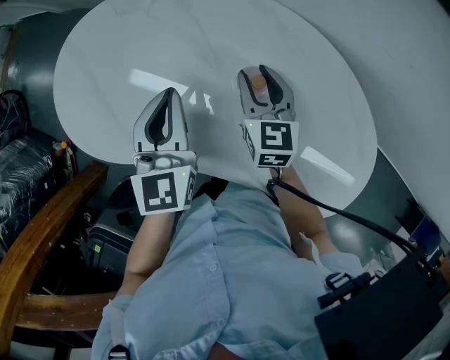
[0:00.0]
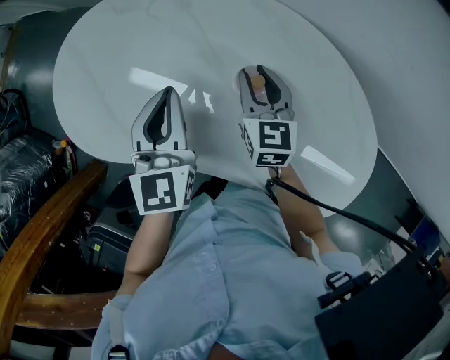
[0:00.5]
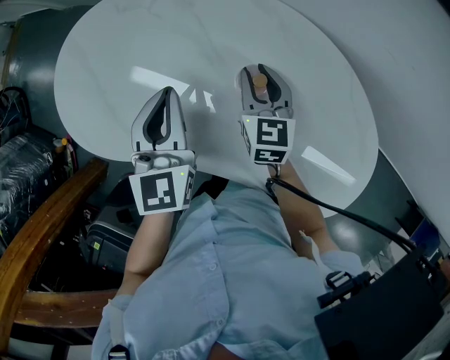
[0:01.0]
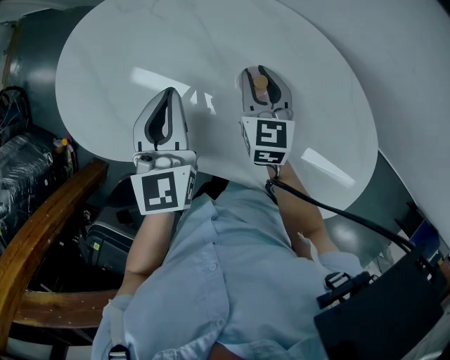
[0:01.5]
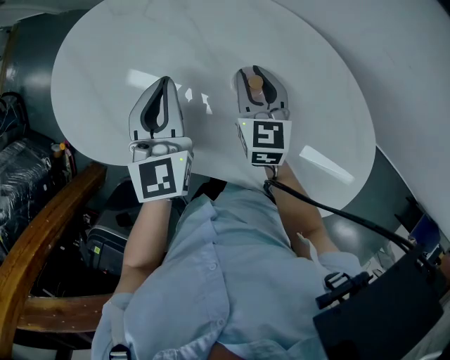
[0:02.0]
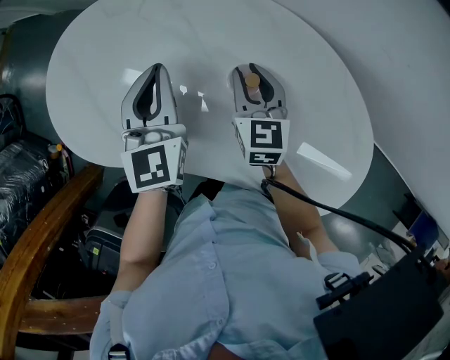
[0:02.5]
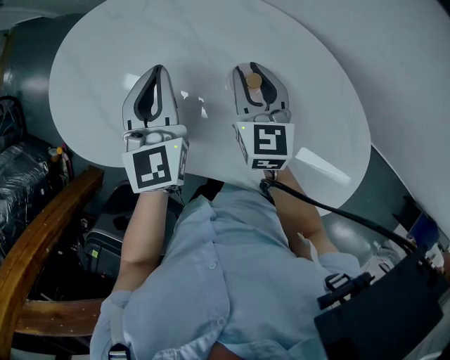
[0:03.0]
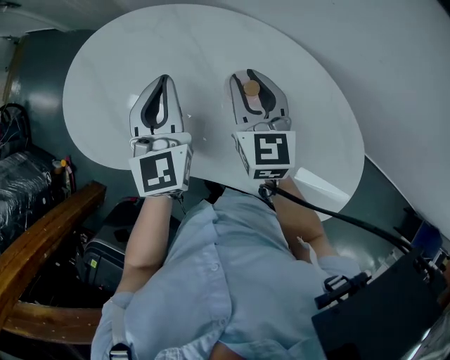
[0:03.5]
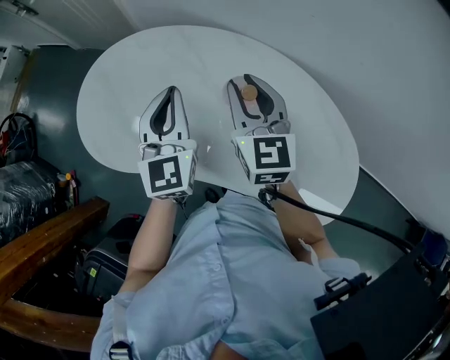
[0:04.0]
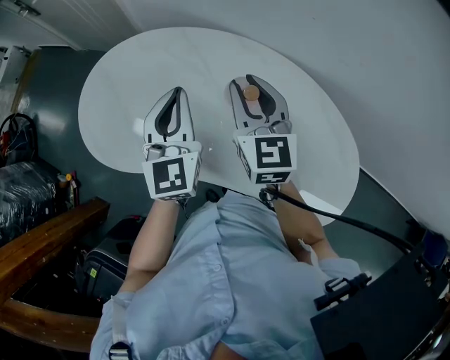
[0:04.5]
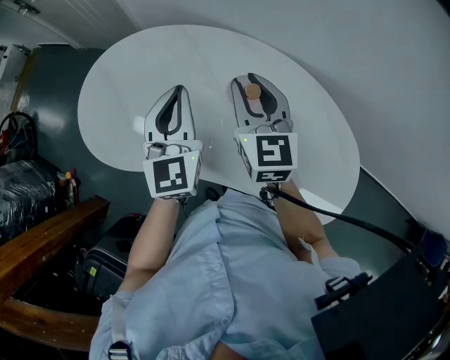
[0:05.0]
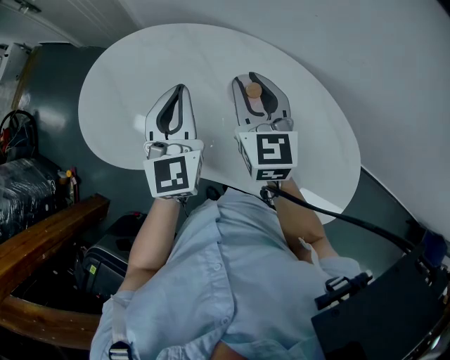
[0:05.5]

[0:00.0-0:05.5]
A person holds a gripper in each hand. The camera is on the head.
0:00.0 to 0:02.0: The grippers stay close to where they were, moving slightly.
0:02.0 to 0:03.5: The right gripper moves upward, approximately 10 cm.
0:03.5 to 0:05.5: The grippers stay close to where they were, moving slightly.

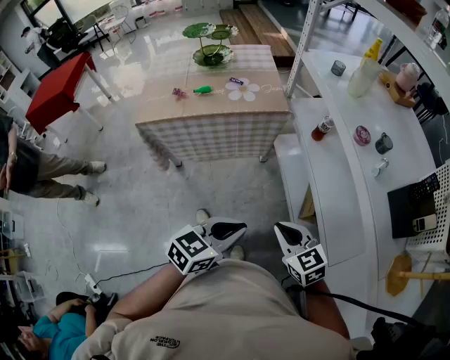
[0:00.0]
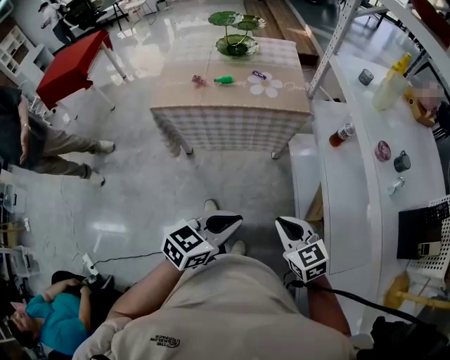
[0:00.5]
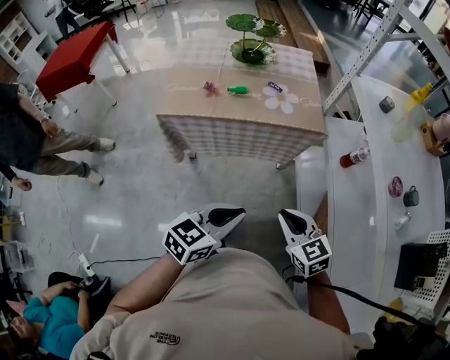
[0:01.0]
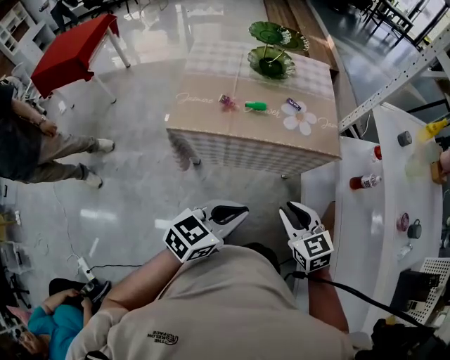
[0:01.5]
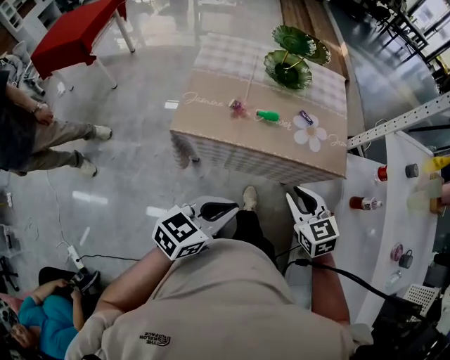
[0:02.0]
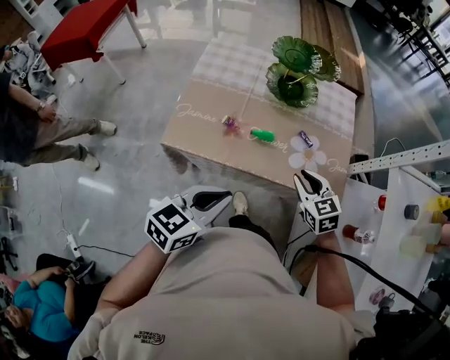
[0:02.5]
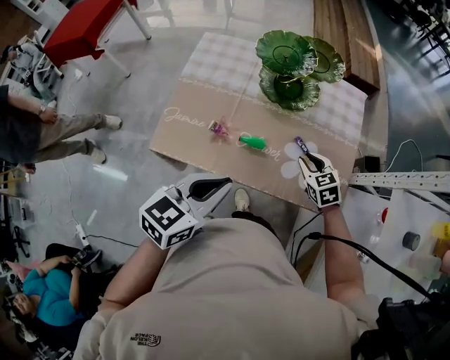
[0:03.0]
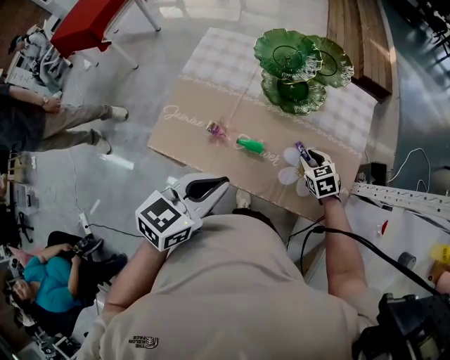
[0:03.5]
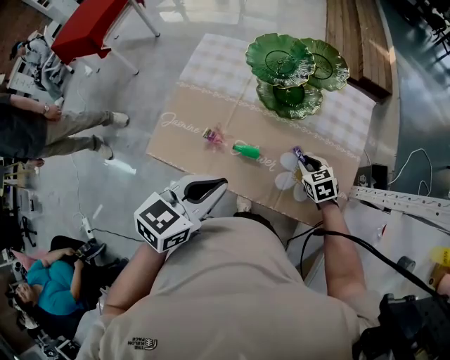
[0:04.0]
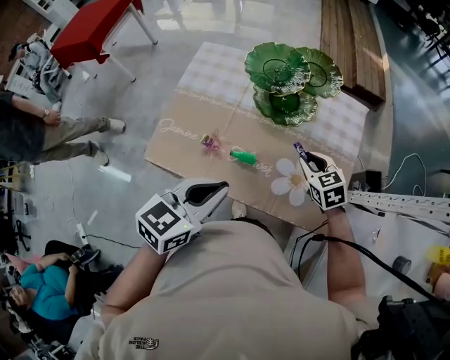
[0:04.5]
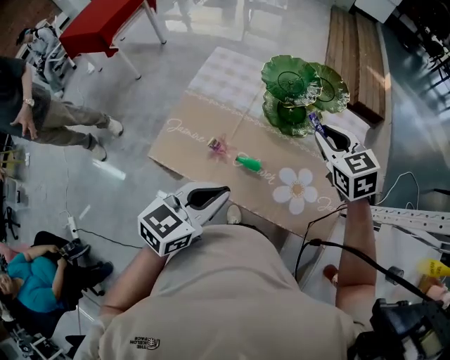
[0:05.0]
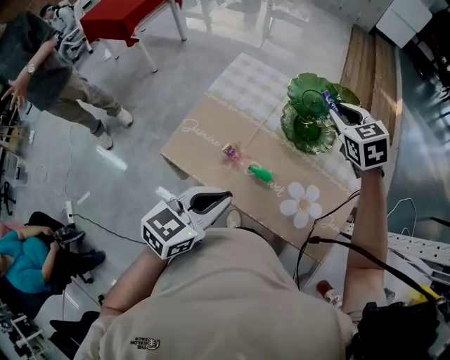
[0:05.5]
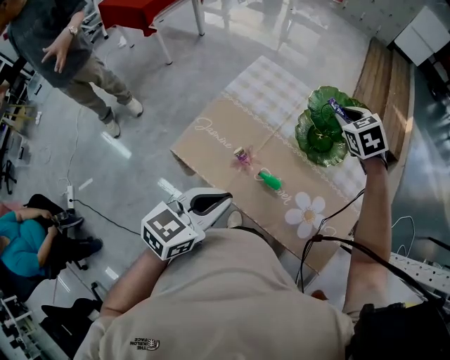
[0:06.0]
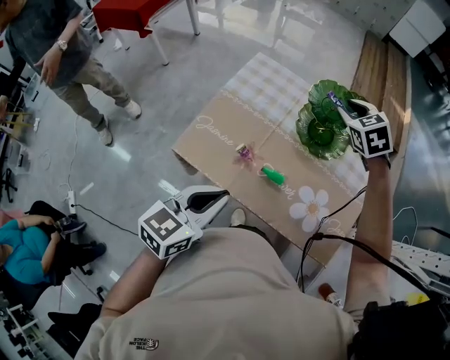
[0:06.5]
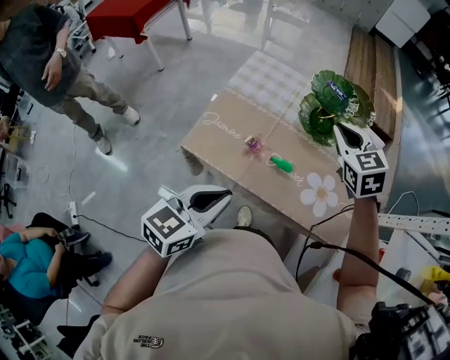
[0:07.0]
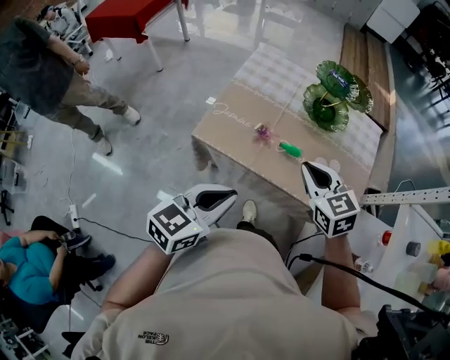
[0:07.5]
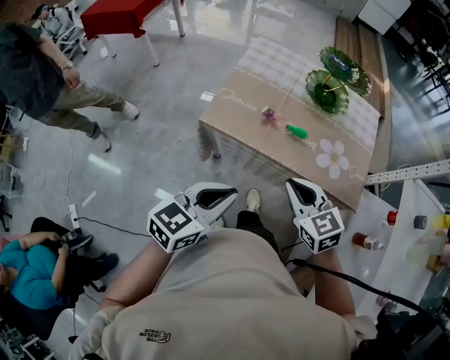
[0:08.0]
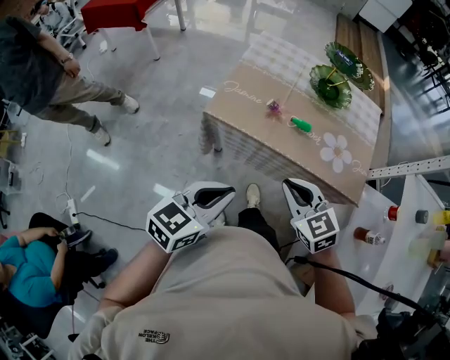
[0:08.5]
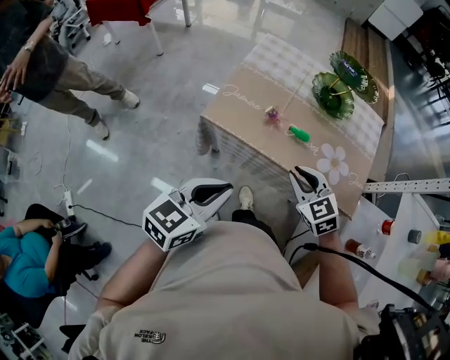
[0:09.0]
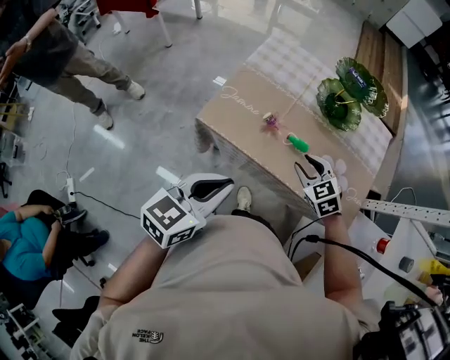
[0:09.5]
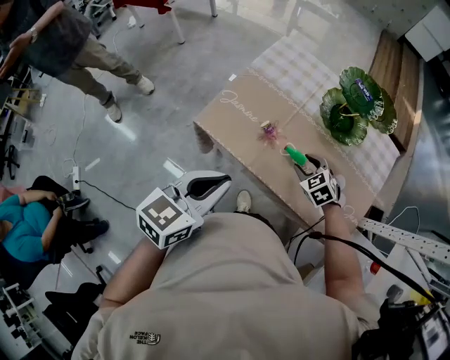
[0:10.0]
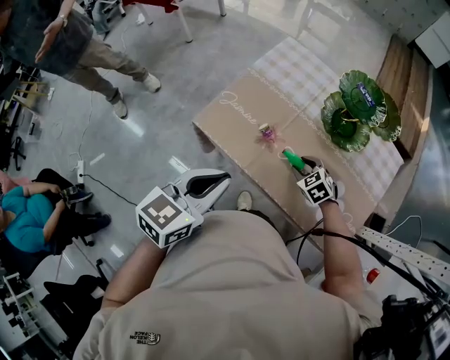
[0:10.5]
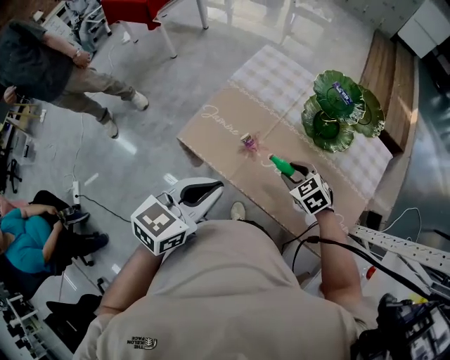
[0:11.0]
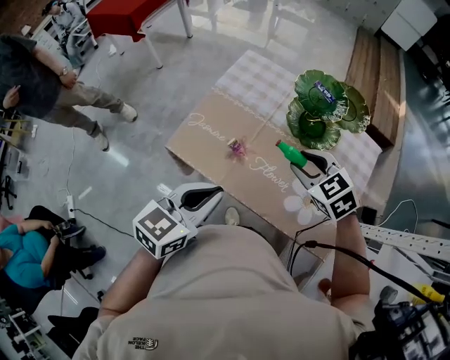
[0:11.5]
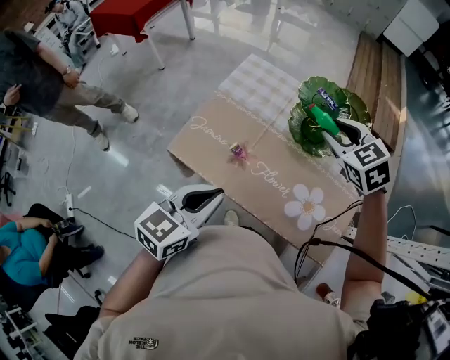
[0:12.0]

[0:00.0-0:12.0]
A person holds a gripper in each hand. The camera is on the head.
0:00.0 to 0:02.0: The left gripper moves to the left and forward, approximately 40 cm. Meanwhile the right gripper travels forward and to the left by approximately 40 cm.
0:02.0 to 0:04.0: The left gripper travels forward by roughly 30 cm, and turns by approximately 20 degrees, while the right gripper heads forward and downward, covering some 40 cm.
0:04.0 to 0:06.0: The right gripper shifts approximately 35 cm upward, forward and to the left, and rotates approximately 30 degrees; the left gripper moves to the left, about 10 cm.
0:06.0 to 0:08.0: The right gripper shifts roughly 50 cm backward, and swivels some 30 degrees; the left gripper moves backward, some 20 cm.
0:08.0 to 0:10.0: The right gripper travels forward and downward by approximately 30 cm, swivels some 30 degrees, and opens up. The left gripper travels forward by roughly 15 cm.
0:10.0 to 0:12.0: The left gripper moves to the right, about 5 cm. Meanwhile the right gripper shifts about 30 cm upward and forward.

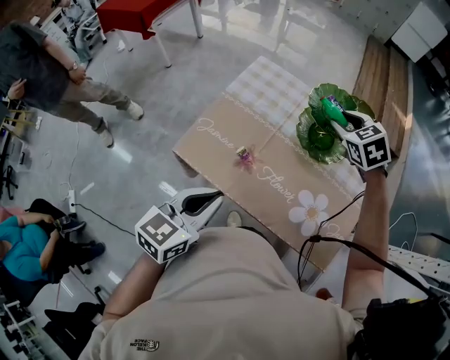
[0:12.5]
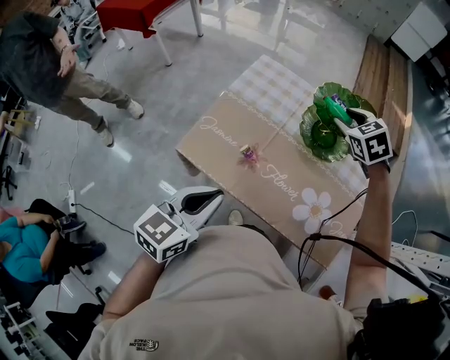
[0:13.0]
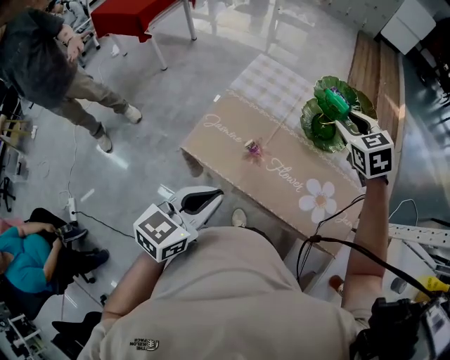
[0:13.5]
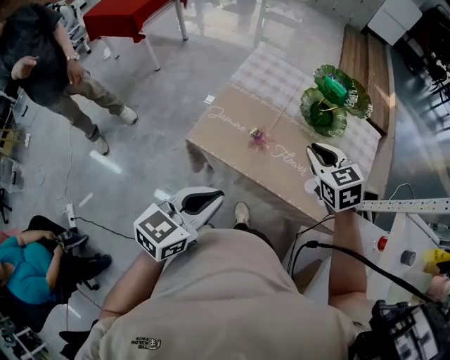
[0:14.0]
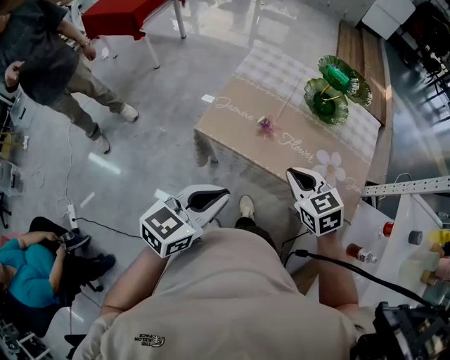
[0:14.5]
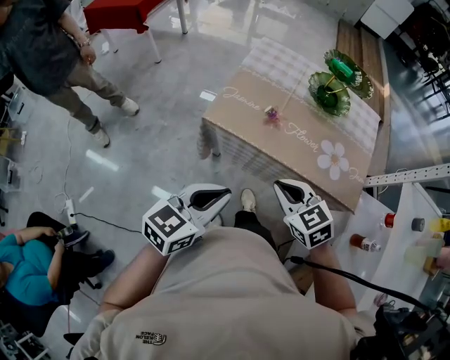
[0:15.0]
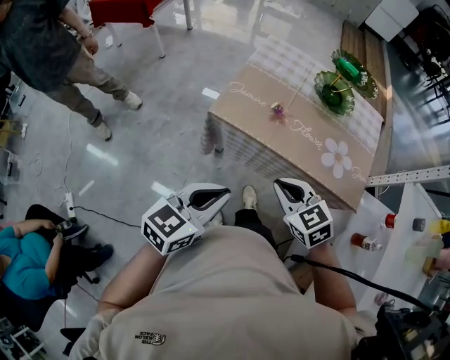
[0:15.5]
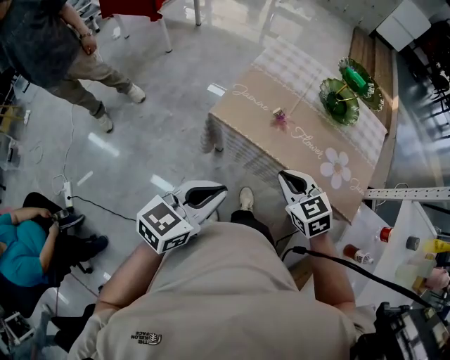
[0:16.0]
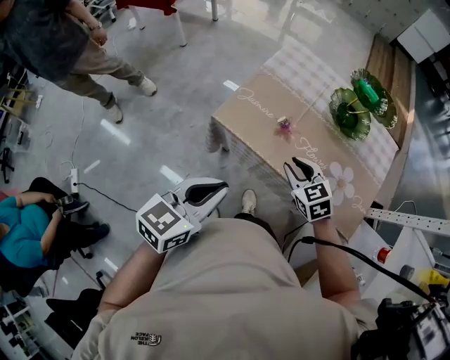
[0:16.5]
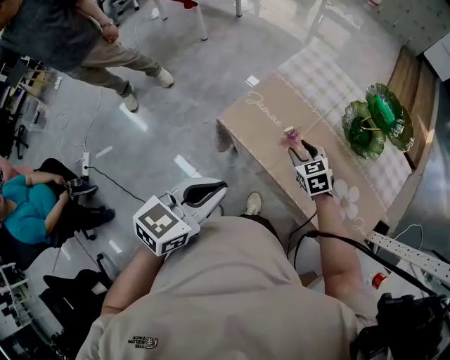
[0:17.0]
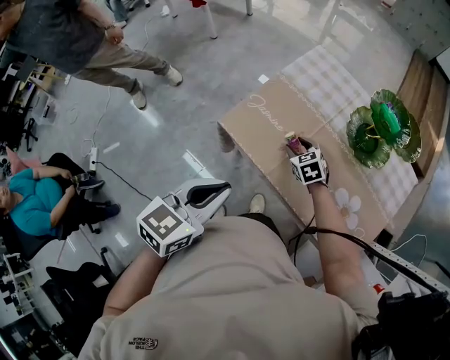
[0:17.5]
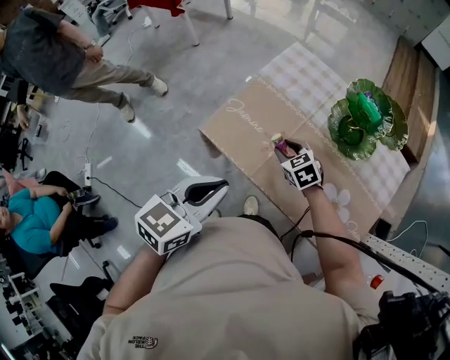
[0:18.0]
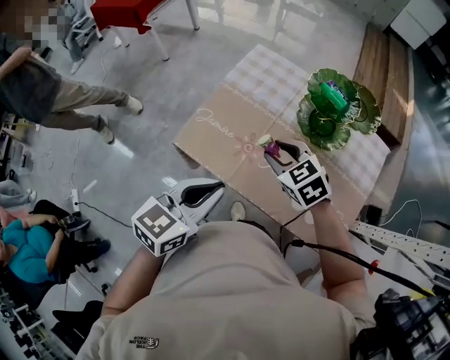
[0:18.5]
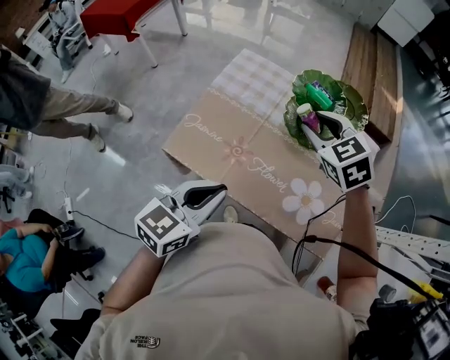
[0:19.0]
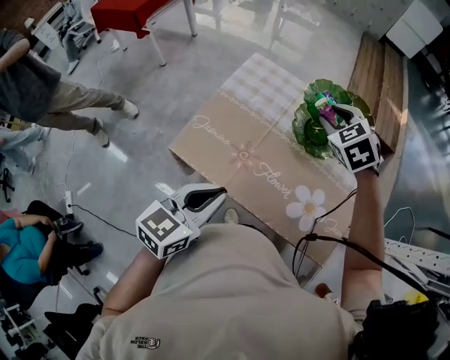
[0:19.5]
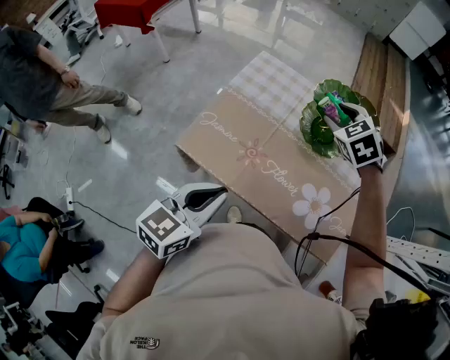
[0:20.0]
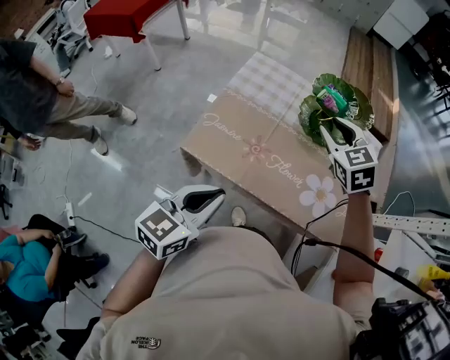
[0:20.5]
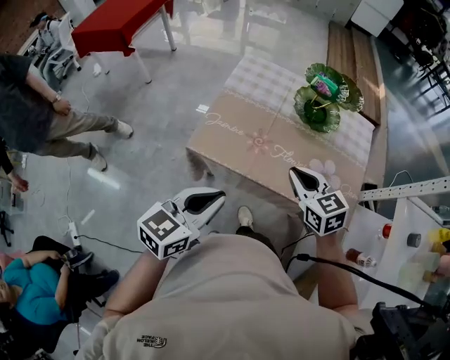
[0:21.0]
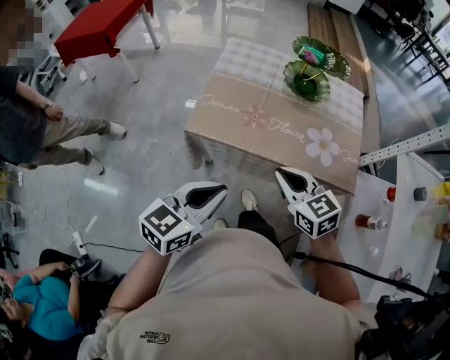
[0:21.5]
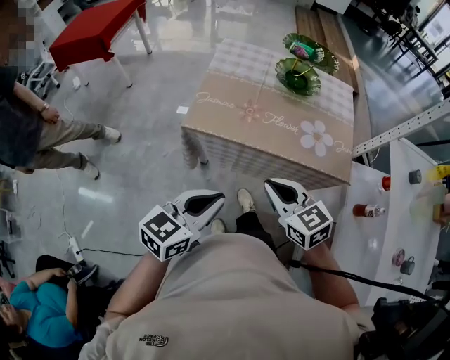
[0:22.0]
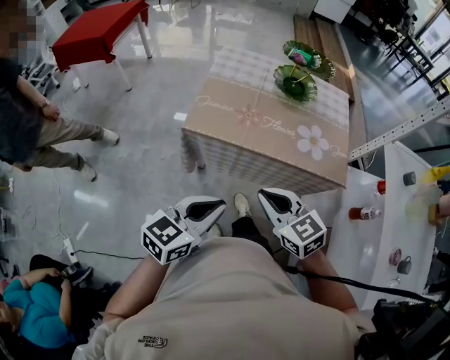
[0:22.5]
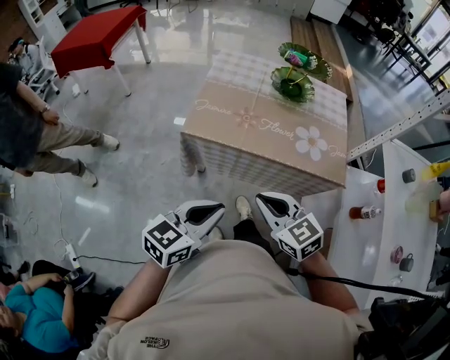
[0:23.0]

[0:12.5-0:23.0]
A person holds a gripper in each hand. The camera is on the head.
0:12.5 to 0:14.5: The right gripper heads backward, covering roughly 35 cm, and closes up, while the left gripper heads backward and to the left, covering roughly 15 cm.
0:14.5 to 0:16.5: The right gripper heads downward, covering about 10 cm, moves some 10 cm backward and comes back, and opens. Meanwhile the left gripper travels backward and back again, roughly 5 cm each way.
0:16.5 to 0:19.0: The right gripper shifts roughly 30 cm forward, to the right and upward, while the left gripper is displaced to the right and forward by some 20 cm.
0:19.0 to 0:21.0: The left gripper shifts approximately 15 cm backward and to the left; the right gripper shifts approximately 20 cm backward, changes its angle by about 30 degrees, and closes its fingers.
0:21.0 to 0:23.0: The left gripper moves backward, roughly 15 cm. The right gripper travels backward by about 25 cm.
